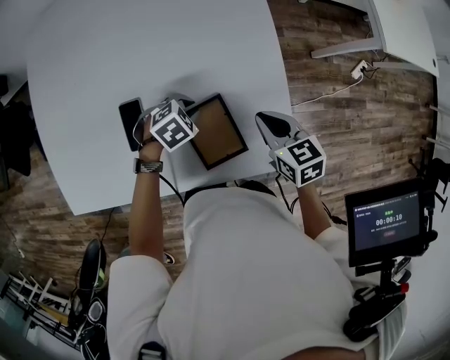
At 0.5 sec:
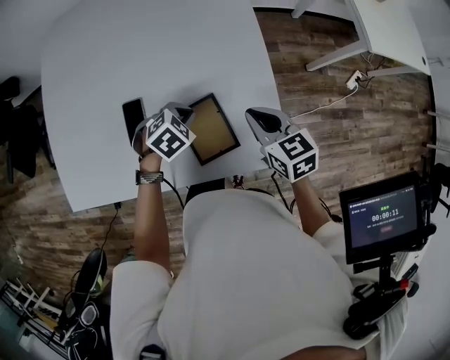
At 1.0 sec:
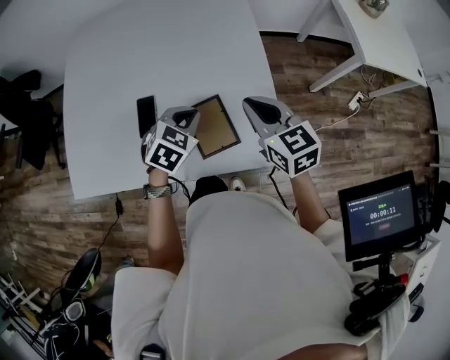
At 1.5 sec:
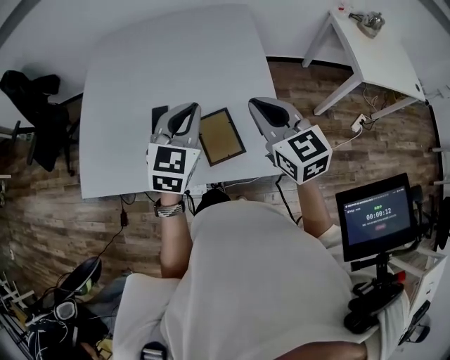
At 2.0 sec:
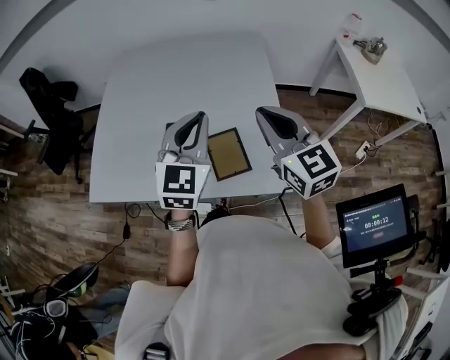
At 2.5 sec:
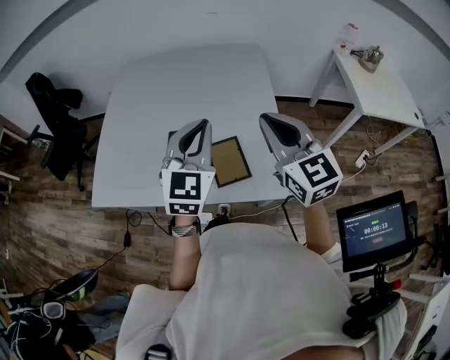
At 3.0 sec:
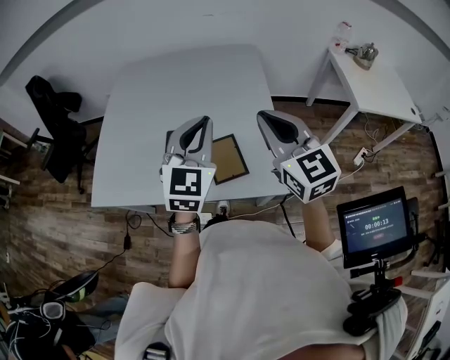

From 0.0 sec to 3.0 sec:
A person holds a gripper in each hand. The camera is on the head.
From 0.0 sec to 1.5 sec: Both grippers travel together upward, some 25 cm. The right gripper turns by roughly 30 degrees, while the left gripper angles its fingers upward, by some 50 degrees.
From 1.5 sec to 3.0 sec: The two grippers go approximately 10 cm upward and backward.

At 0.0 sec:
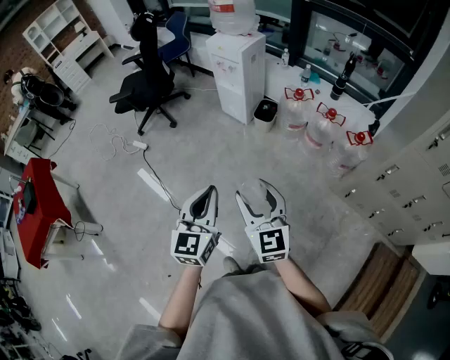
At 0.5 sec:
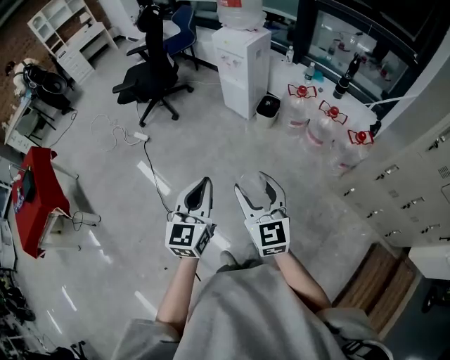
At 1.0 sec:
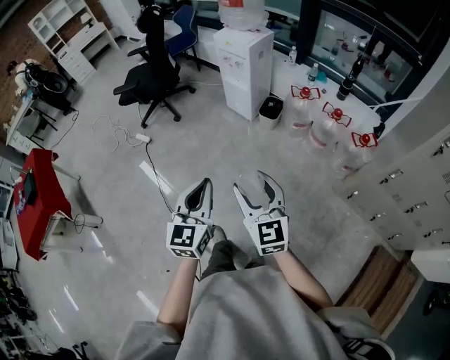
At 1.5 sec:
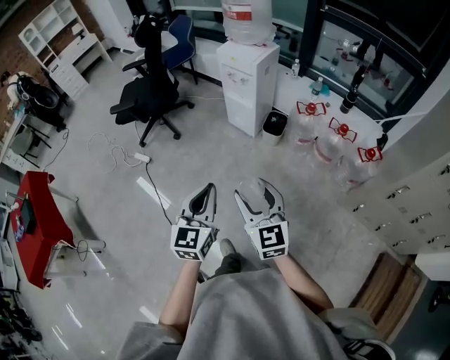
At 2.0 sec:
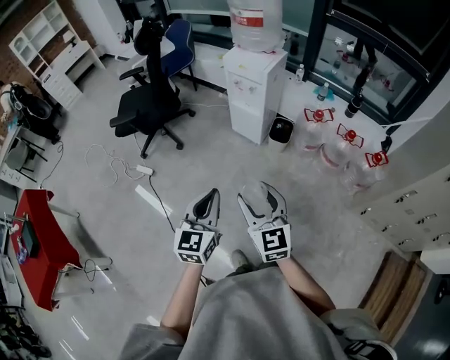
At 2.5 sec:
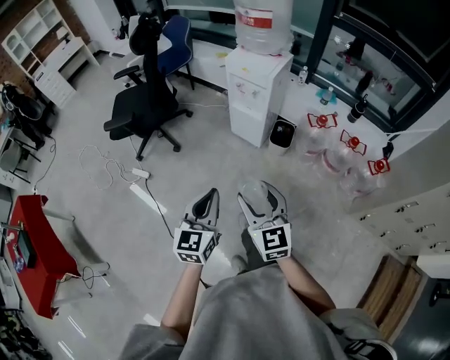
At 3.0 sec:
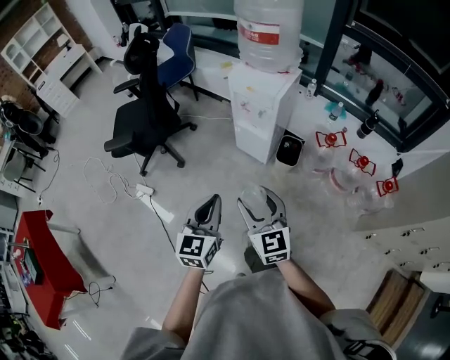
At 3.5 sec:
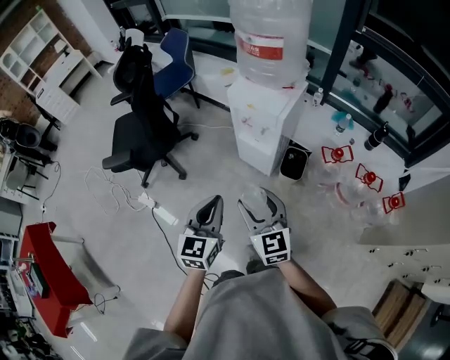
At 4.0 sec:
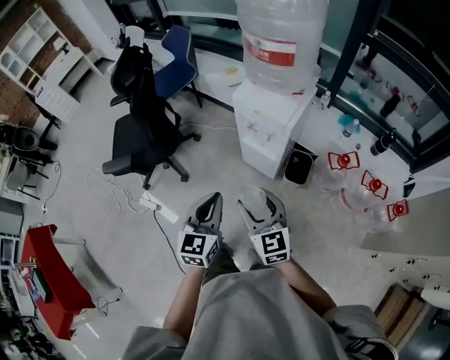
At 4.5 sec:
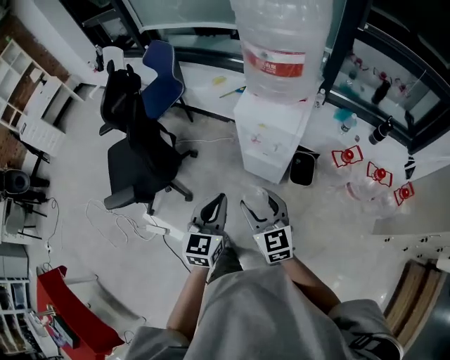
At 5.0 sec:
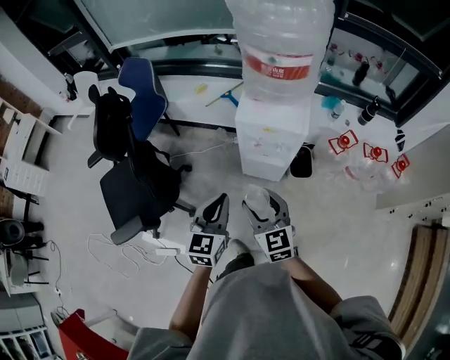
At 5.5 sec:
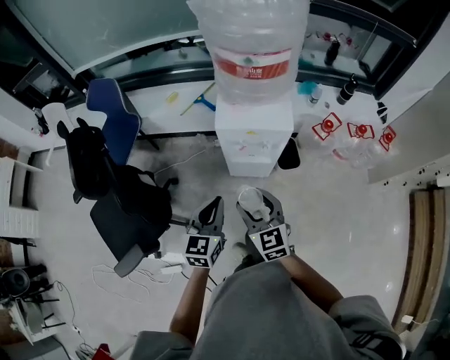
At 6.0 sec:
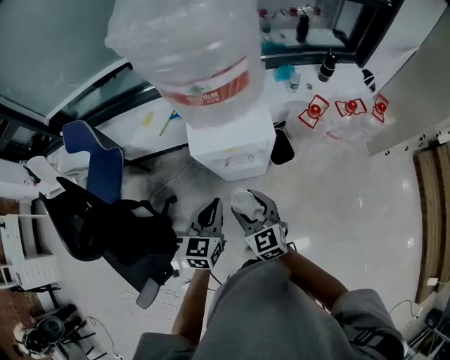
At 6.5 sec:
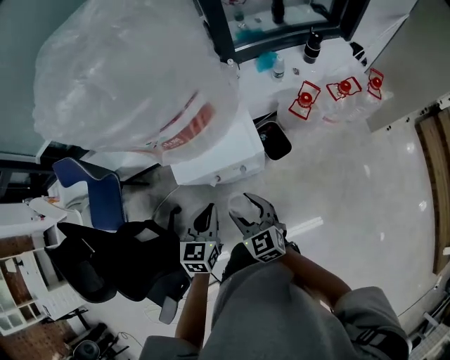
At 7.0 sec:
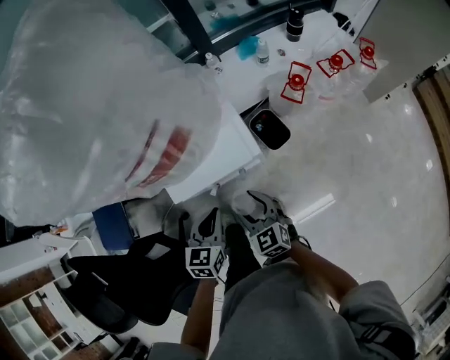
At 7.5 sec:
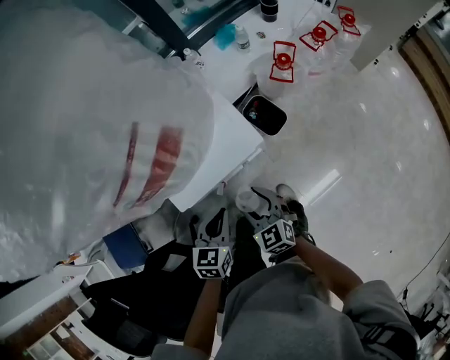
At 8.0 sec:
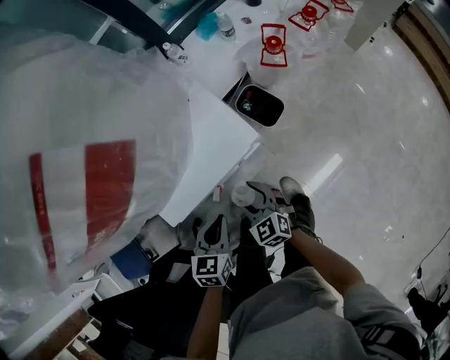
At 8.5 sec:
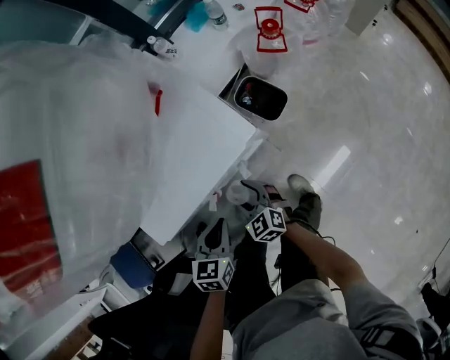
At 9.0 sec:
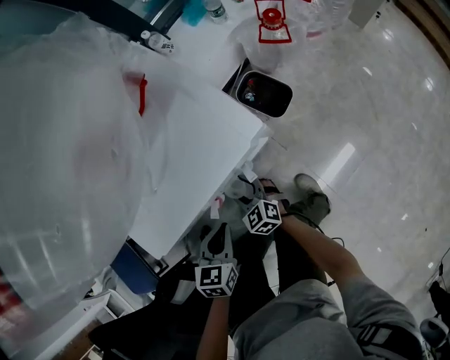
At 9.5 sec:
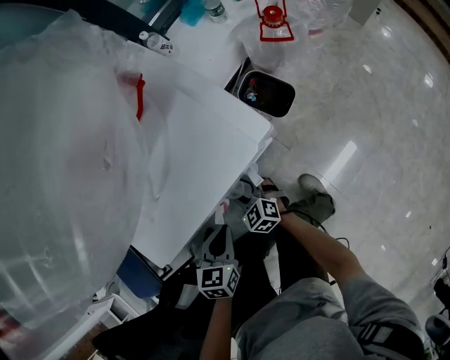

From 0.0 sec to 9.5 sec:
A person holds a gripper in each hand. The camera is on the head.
From 0.0 sec to 2.0 sec: The two grippers go approximately 25 cm forward and to the left.
From 2.0 sec to 4.0 sec: Both grippers travel together forward, about 40 cm.
From 4.0 sec to 5.5 sec: The left gripper changes place by some 25 cm, and rotates some 30 degrees. The right gripper changes place by some 20 cm, and swivels approximately 30 degrees.
From 5.5 sec to 7.5 sec: The right gripper goes roughly 20 cm downward, and rotates roughly 30 degrees; the left gripper ends up some 25 cm from where it was, and rotates some 40 degrees.
From 7.5 sec to 9.5 sec: The left gripper shifts about 20 cm downward; the right gripper travels downward by approximately 30 cm.

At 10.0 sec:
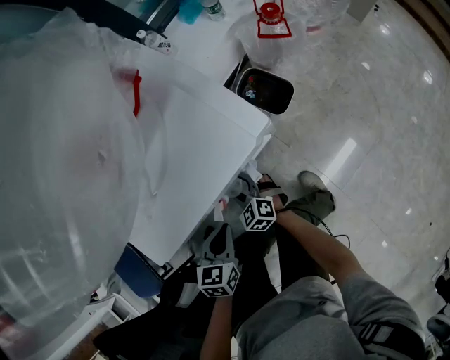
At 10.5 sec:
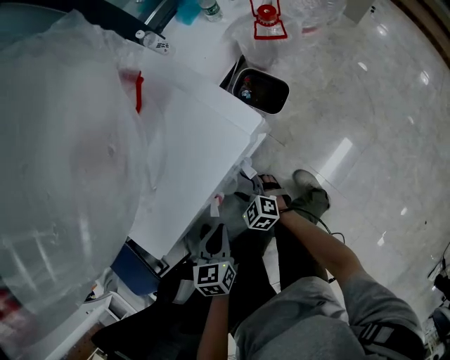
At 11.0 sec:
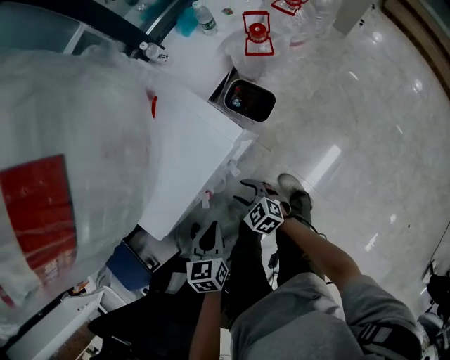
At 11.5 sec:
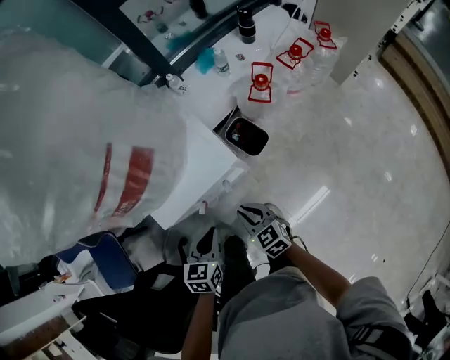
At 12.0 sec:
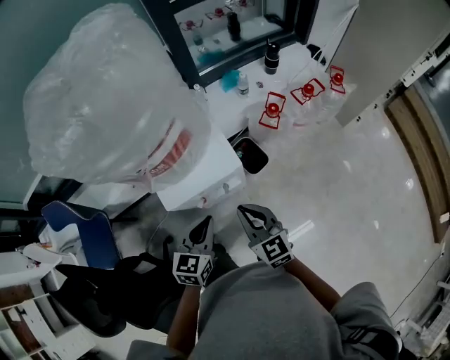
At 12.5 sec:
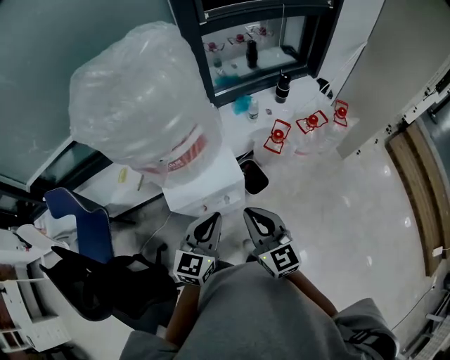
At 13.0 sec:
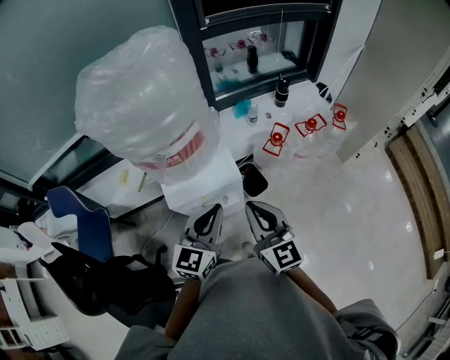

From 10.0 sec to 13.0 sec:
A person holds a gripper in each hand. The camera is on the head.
From 10.0 sec to 11.5 sec: The right gripper heads upward and to the right, covering approximately 30 cm, and closes; the left gripper goes about 20 cm upward and to the right.
From 11.5 sec to 13.0 sec: Both grippers move upward, approximately 30 cm. The right gripper angles its fingers upward, by about 30 degrees. Meanwhile the left gripper angles its fingers upward, by approximately 30 degrees.

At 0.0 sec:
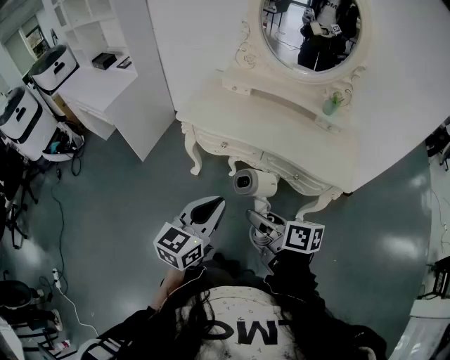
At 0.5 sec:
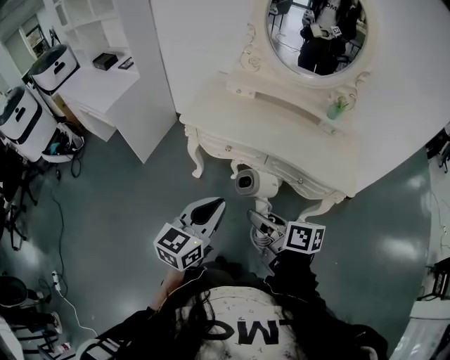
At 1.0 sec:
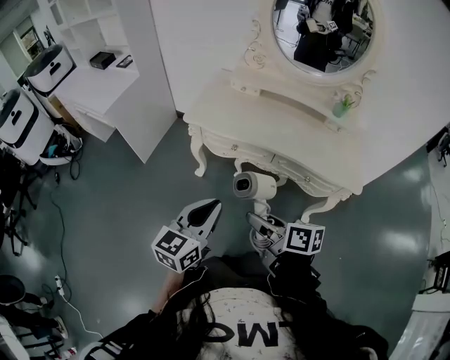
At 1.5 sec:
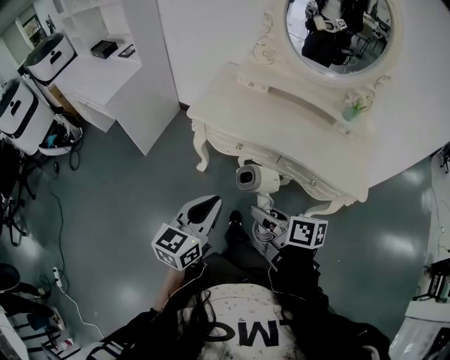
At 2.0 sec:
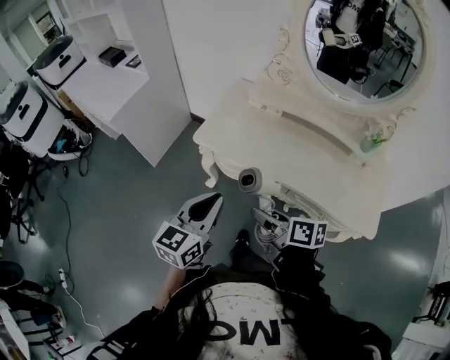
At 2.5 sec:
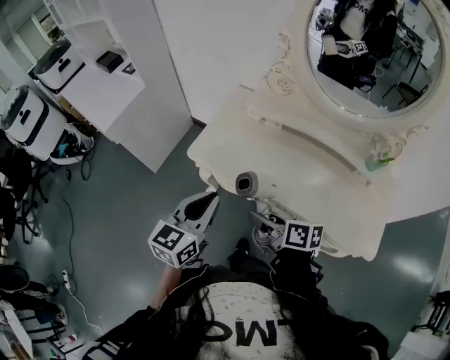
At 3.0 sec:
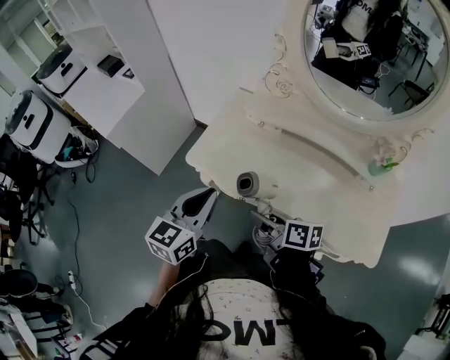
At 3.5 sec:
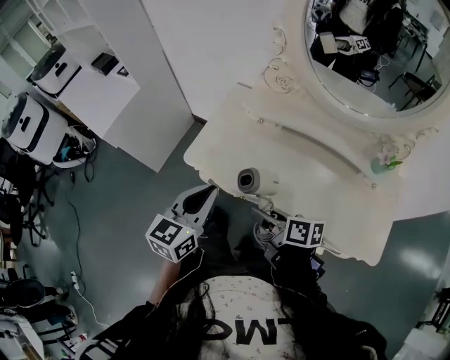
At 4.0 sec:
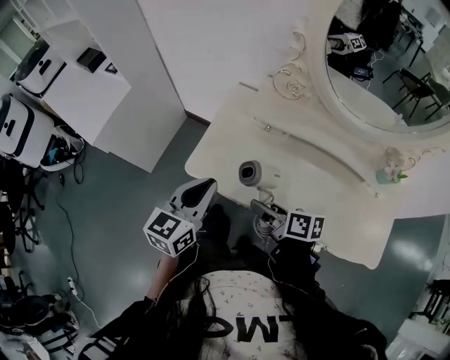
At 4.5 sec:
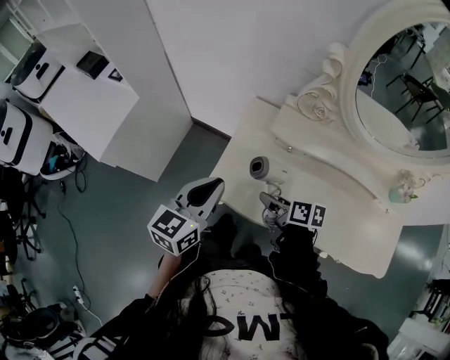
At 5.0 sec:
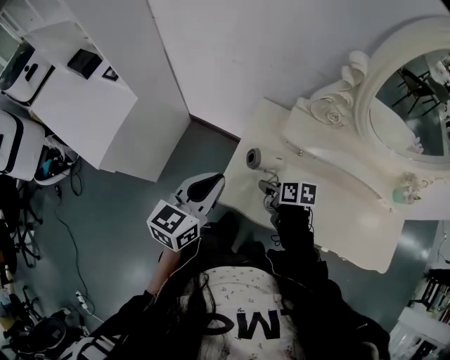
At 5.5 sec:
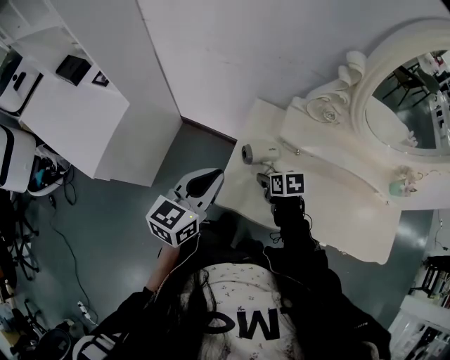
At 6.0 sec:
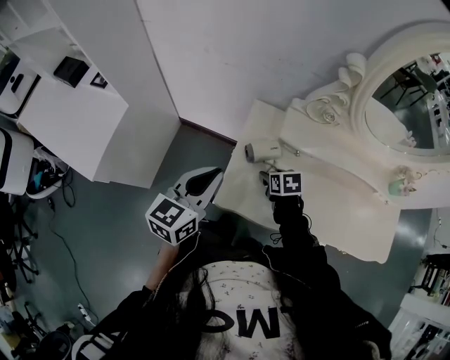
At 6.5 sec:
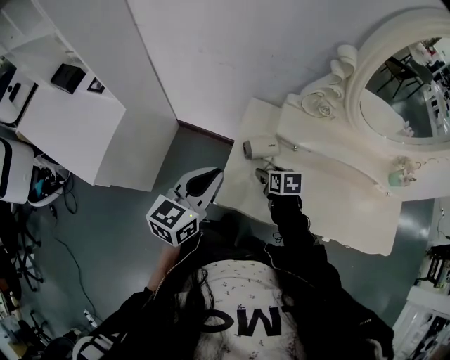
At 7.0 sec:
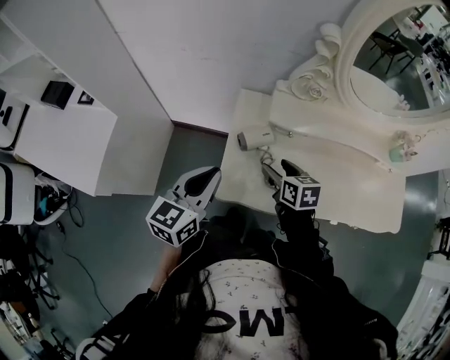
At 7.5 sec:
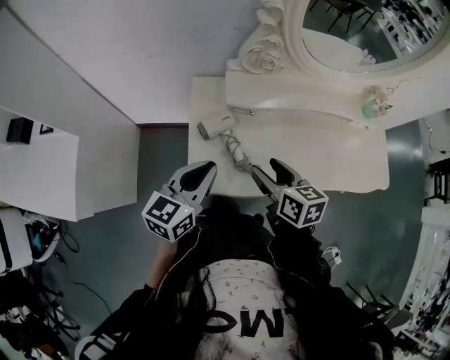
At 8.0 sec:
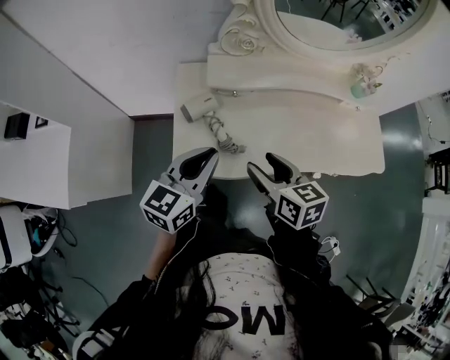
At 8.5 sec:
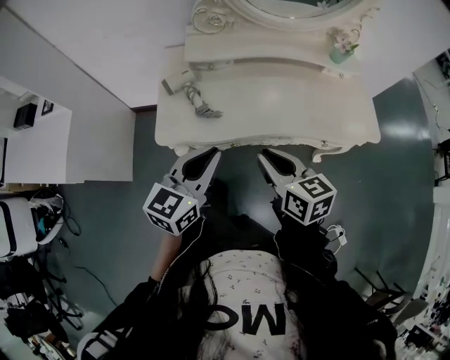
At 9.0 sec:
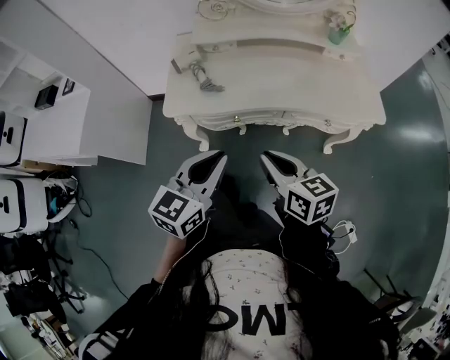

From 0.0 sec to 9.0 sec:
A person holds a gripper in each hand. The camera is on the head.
From 0.0 sec to 2.0 sec: The two grippers go some 20 cm forward.
From 2.0 sec to 4.5 sec: Both grippers travel together forward, roughly 30 cm.
From 4.5 sec to 7.0 sec: The right gripper heads forward, covering roughly 5 cm, and swivels roughly 30 degrees; the left gripper moves to the left and forward, approximately 5 cm.
From 7.0 sec to 9.0 sec: The left gripper moves to the right and backward, approximately 35 cm. Meanwhile the right gripper moves backward and to the right, roughly 40 cm, and closes.

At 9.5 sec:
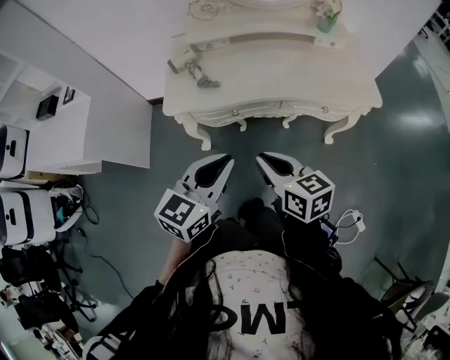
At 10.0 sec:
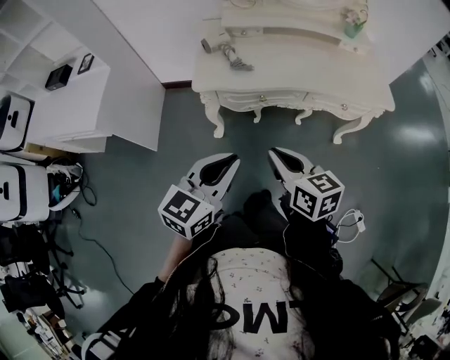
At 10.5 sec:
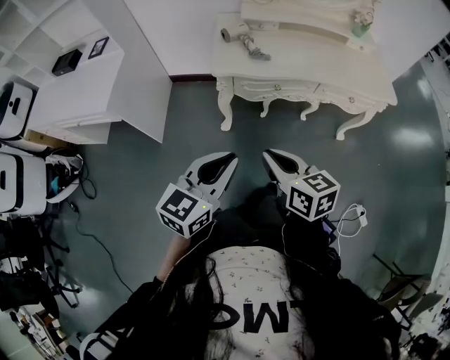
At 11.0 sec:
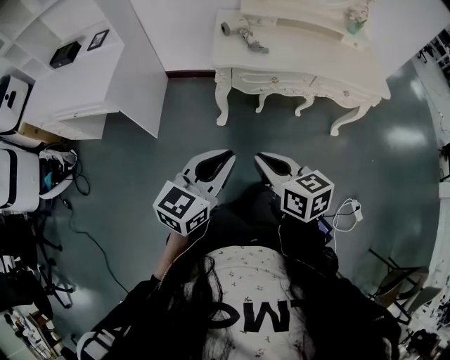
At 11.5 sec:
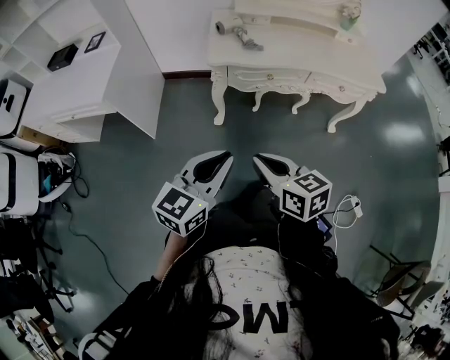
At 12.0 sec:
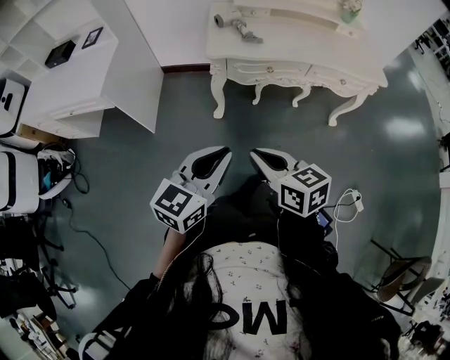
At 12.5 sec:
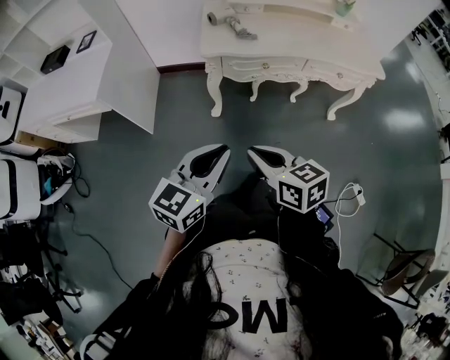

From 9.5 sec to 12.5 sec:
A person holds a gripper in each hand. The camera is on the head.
From 9.5 sec to 11.0 sec: The grippers both shift to the left and backward by some 25 cm.
From 11.0 sec to 12.5 sec: The grippers move only a little.
